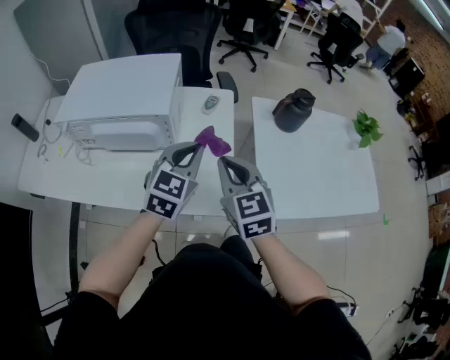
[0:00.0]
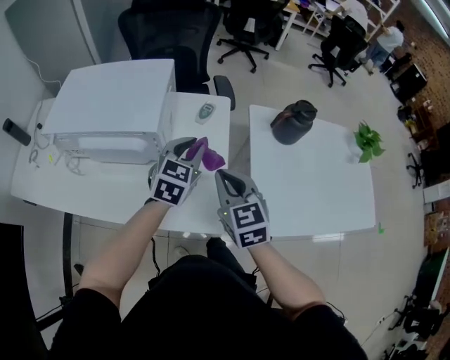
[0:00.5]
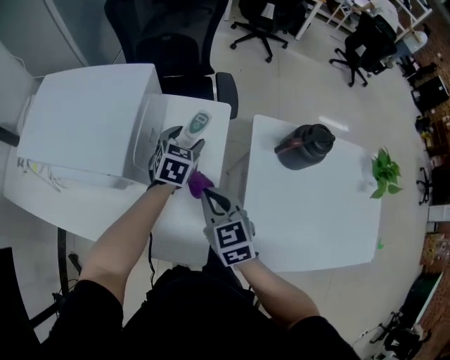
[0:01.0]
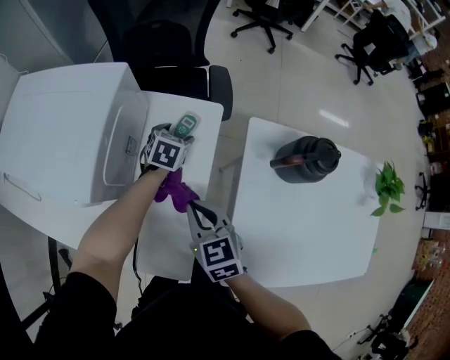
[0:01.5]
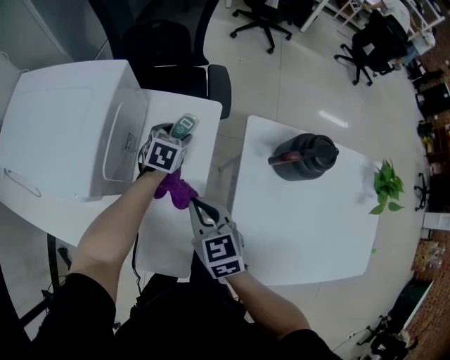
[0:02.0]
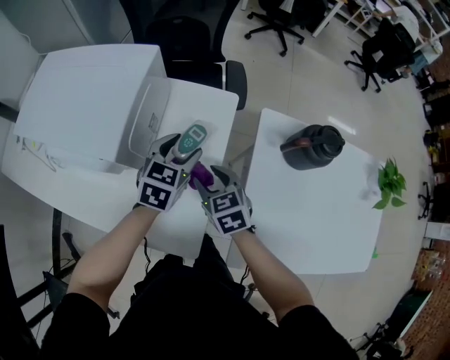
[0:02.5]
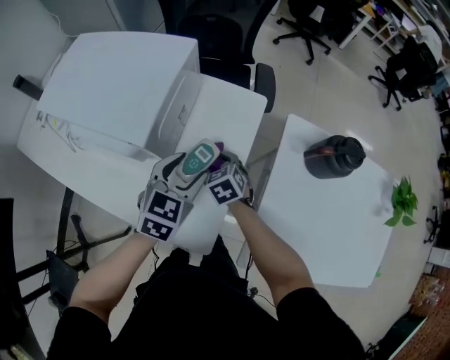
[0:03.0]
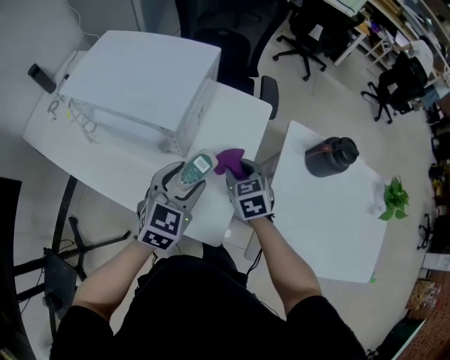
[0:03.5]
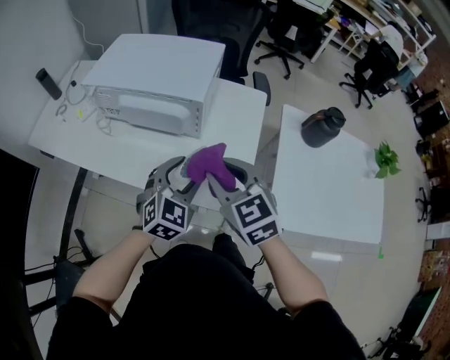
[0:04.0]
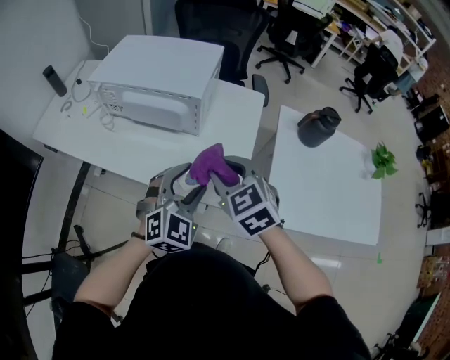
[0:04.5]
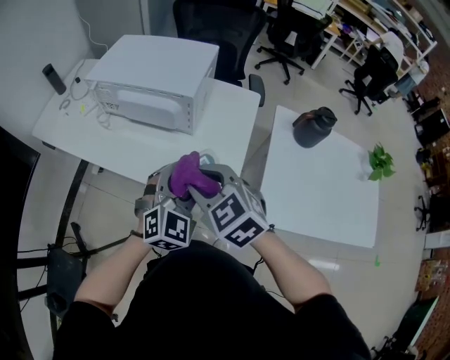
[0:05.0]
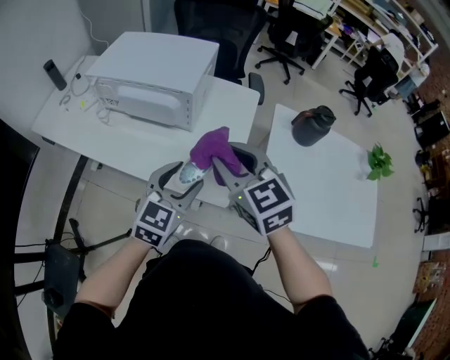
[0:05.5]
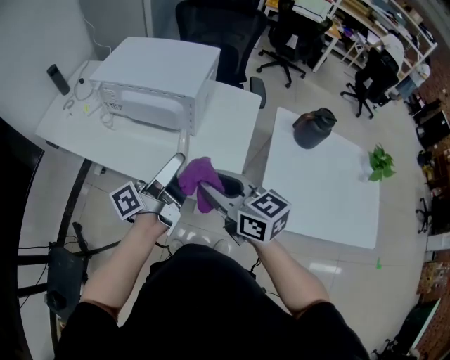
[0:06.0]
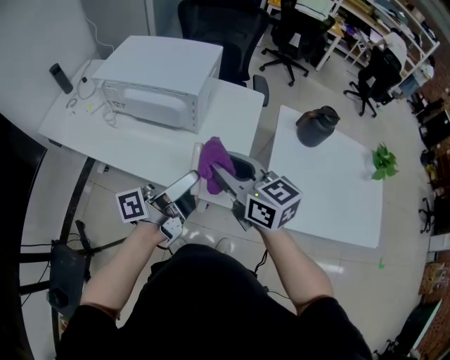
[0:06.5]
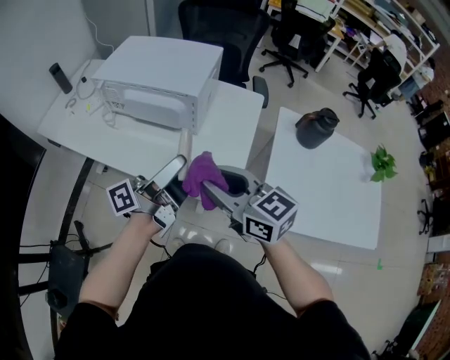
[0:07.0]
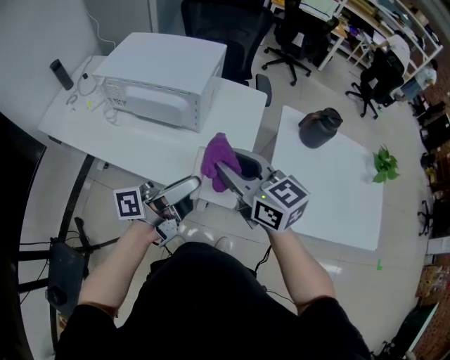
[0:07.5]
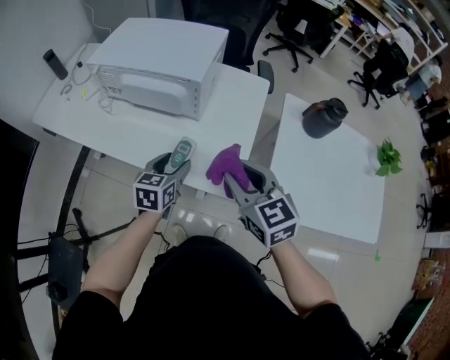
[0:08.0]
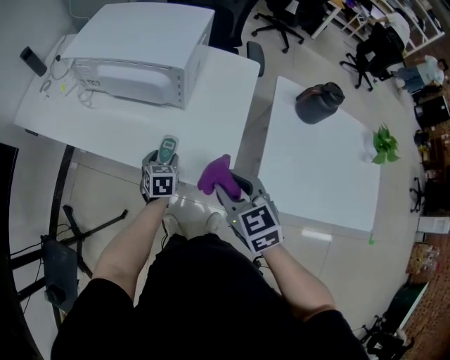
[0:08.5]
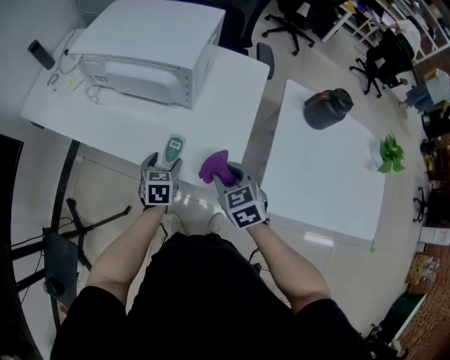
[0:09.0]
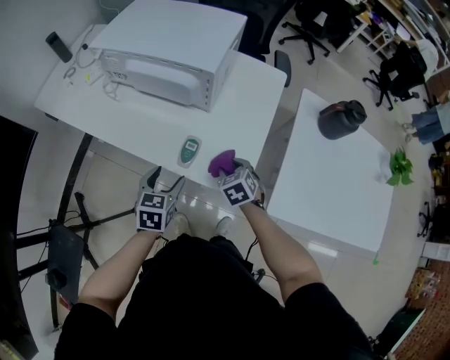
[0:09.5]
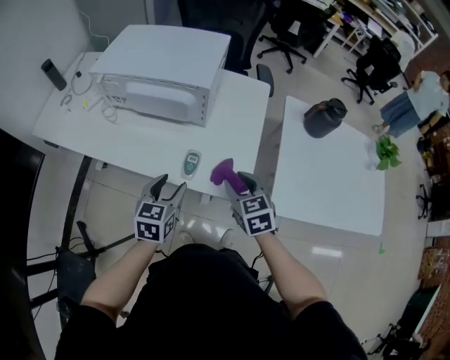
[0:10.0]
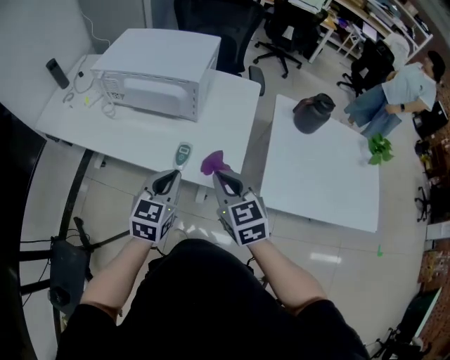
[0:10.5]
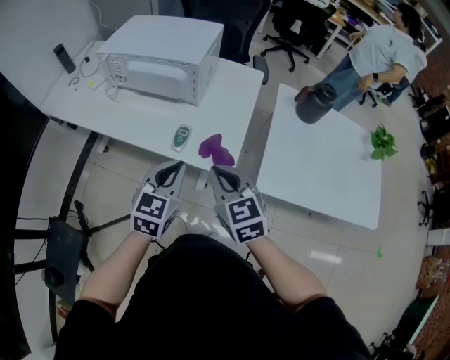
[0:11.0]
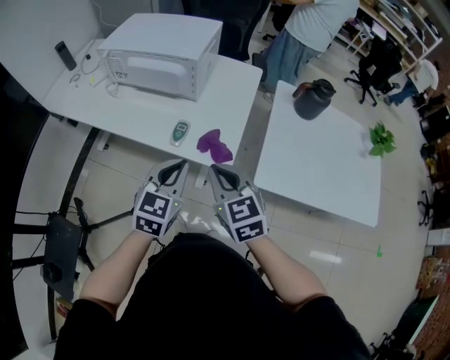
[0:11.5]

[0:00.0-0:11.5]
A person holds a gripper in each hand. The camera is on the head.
0:00.0 to 0:02.0: The right gripper travels downward, forward and to the right by about 25 cm, and swivels roughly 20 degrees. Meanwhile the left gripper is displaced forward and downward by some 40 cm, turns by about 40 degrees, and opens its fingers.
0:02.0 to 0:04.0: The left gripper goes approximately 50 cm backward, to the left and upward, and changes its angle by about 30 degrees, while the right gripper heads to the left, backward and upward, covering roughly 30 cm, turns by approximately 20 degrees, and opens.
0:04.0 to 0:06.0: The left gripper is displaced upward by some 10 cm, and twists about 90 degrees counterclockwise, seen from behind; the right gripper is displaced backward by some 5 cm, and rotates some 30 degrees.
0:06.0 to 0:07.5: The left gripper is displaced backward by approximately 5 cm, and rotates some 20 degrees. The right gripper shifts by about 5 cm.
0:07.5 to 0:09.5: The right gripper shifts approximately 35 cm downward, and angles its fingers downward, by approximately 50 degrees. Meanwhile the left gripper heads downward and to the left, covering approximately 25 cm, and tilts its fingers roughly 60 degrees downward.
0:09.5 to 0:11.5: The left gripper goes approximately 20 cm upward, backward and to the right, turns by about 30 degrees, and closes up; the right gripper shifts approximately 30 cm upward and backward, points its fingers about 30 degrees further upward, and closes.

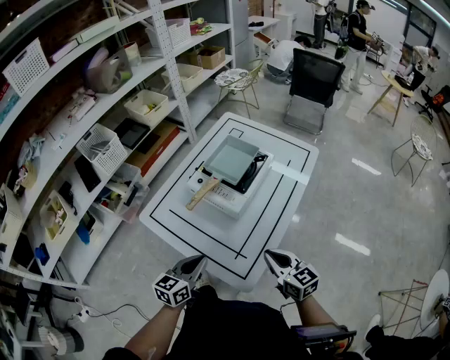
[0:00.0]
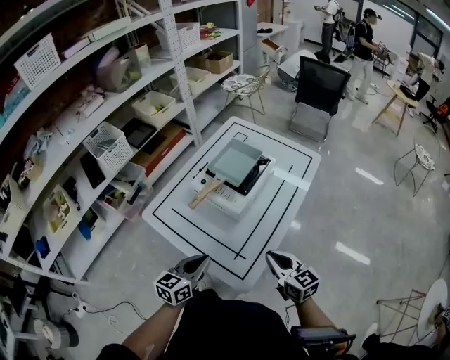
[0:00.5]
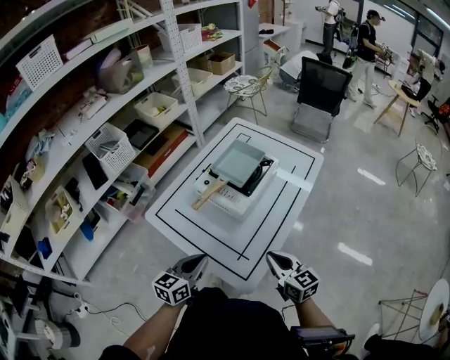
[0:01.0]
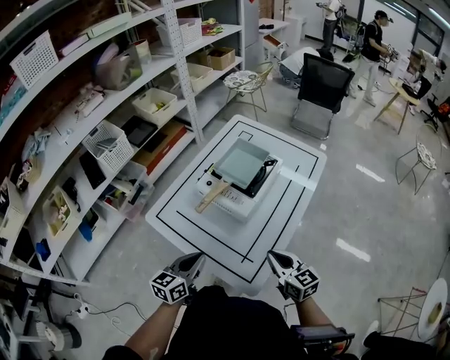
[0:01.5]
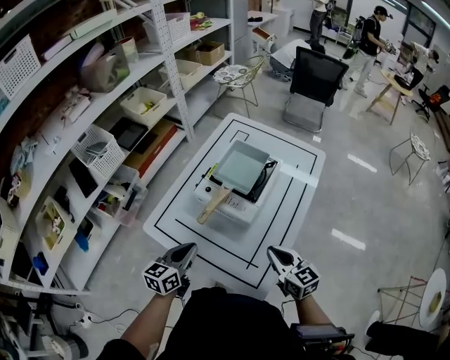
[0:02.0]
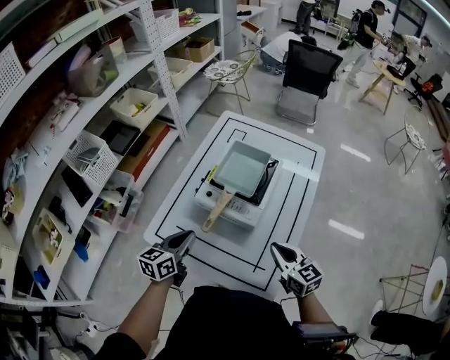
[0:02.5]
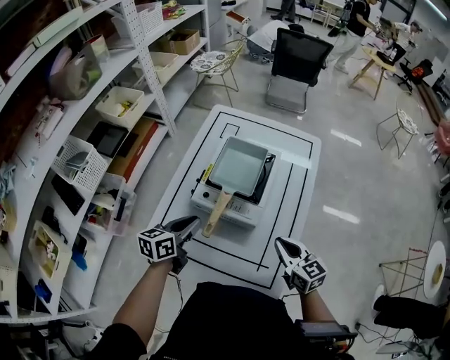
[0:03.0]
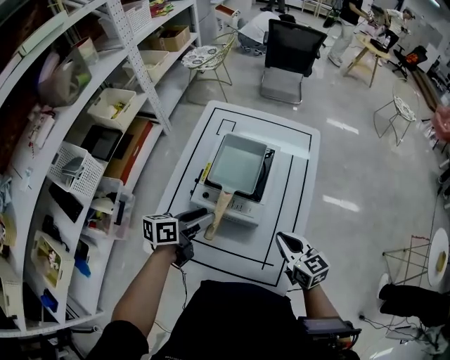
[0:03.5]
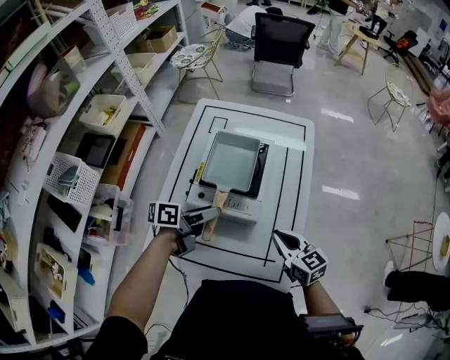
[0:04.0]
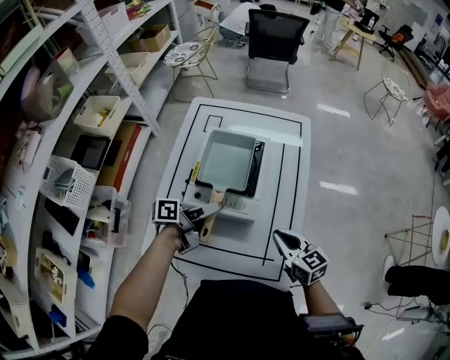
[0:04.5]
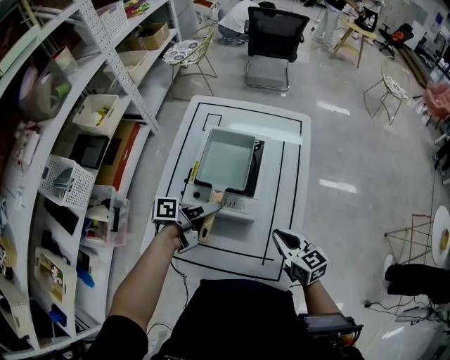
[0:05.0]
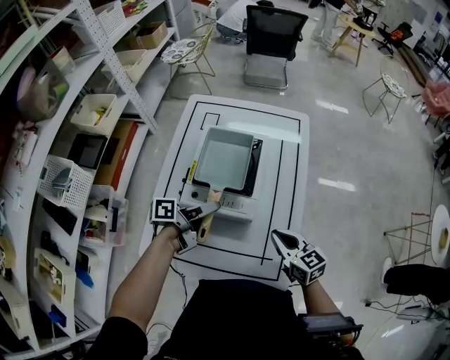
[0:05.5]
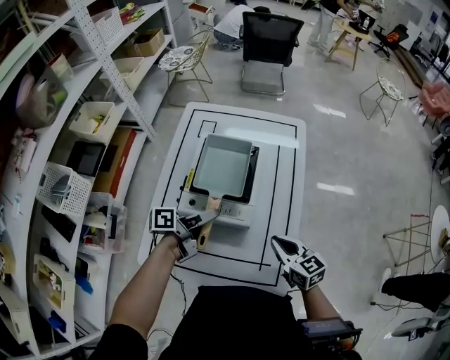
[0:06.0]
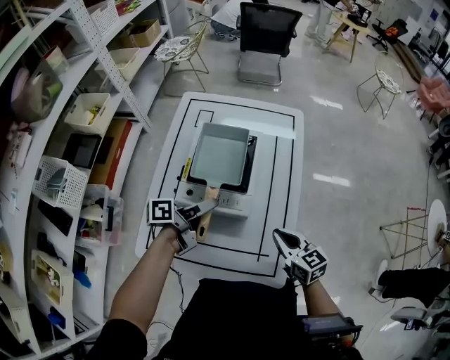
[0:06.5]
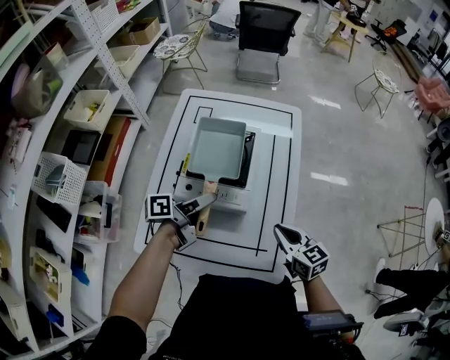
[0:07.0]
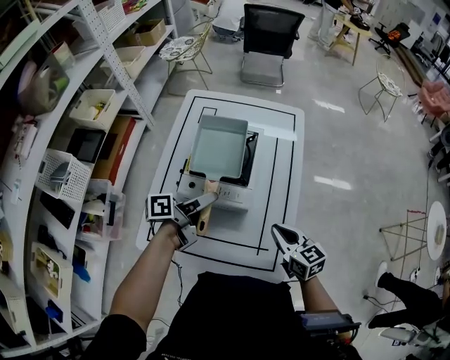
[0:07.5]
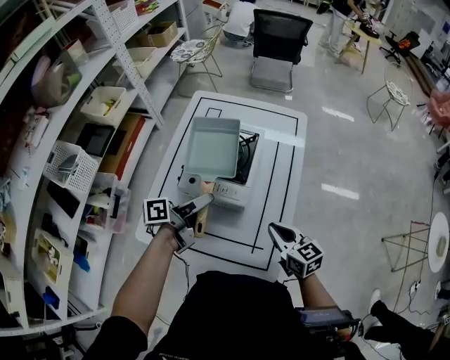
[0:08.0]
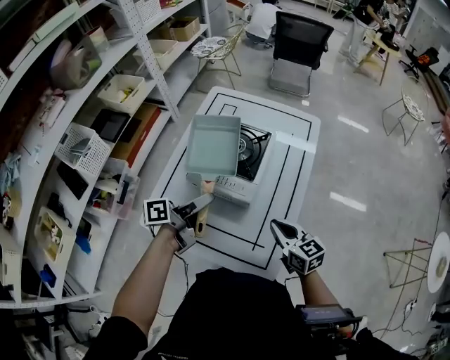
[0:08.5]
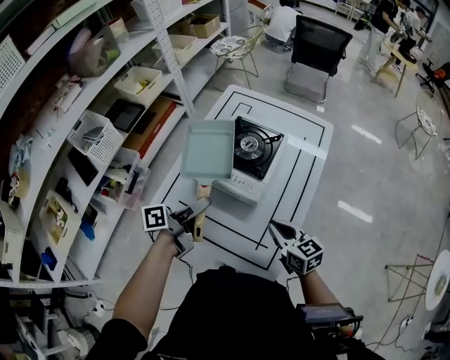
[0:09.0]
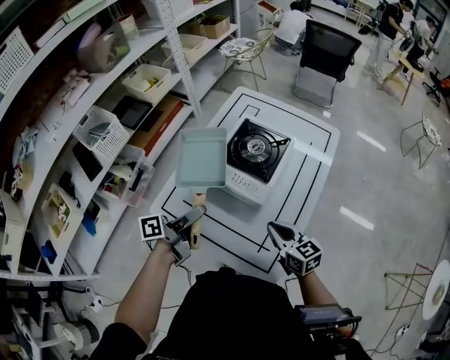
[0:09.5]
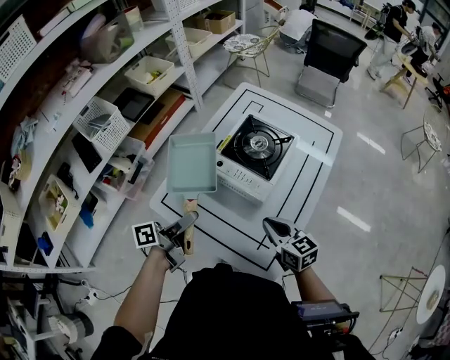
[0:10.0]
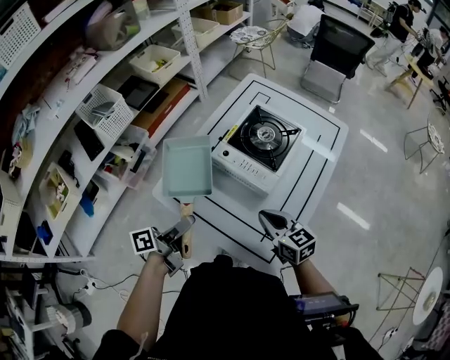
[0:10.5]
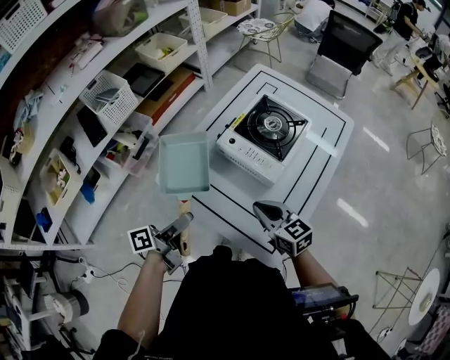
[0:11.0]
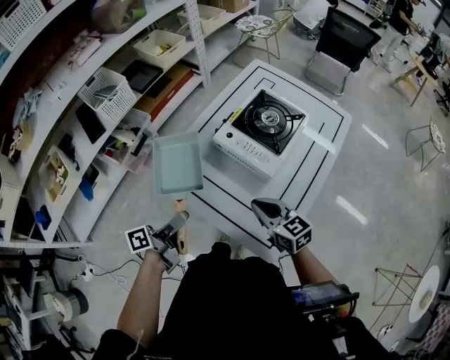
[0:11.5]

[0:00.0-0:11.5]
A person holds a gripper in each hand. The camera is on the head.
0:00.0 to 0:02.0: The right gripper is displaced forward by approximately 5 cm. The left gripper is displaced forward and to the left by about 10 cm.
0:02.0 to 0:04.0: The left gripper changes place by roughly 20 cm, swivels approximately 50 degrees, and opens up. Meanwhile the right gripper shifts by about 5 cm.
0:04.0 to 0:06.0: The left gripper closes its fingers.
0:06.0 to 0:07.5: The grippers stay close to where they were, moving slightly.
0:07.5 to 0:09.5: The left gripper heads backward and to the left, covering roughly 10 cm, and changes its angle by approximately 30 degrees. The right gripper changes its angle by roughly 20 degrees.
0:09.5 to 0:11.5: The left gripper heads backward and to the left, covering roughly 15 cm; the right gripper travels to the left by about 10 cm.

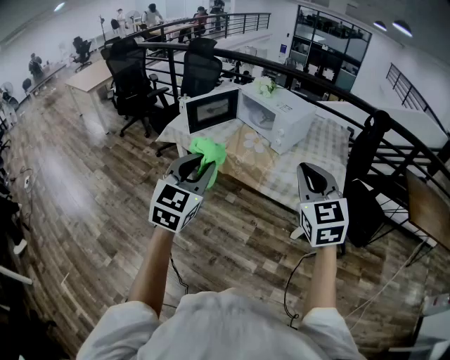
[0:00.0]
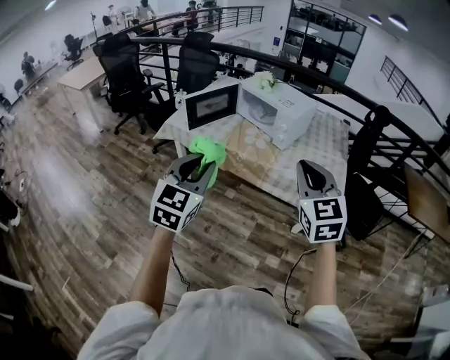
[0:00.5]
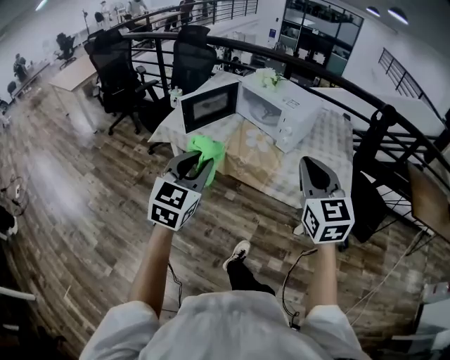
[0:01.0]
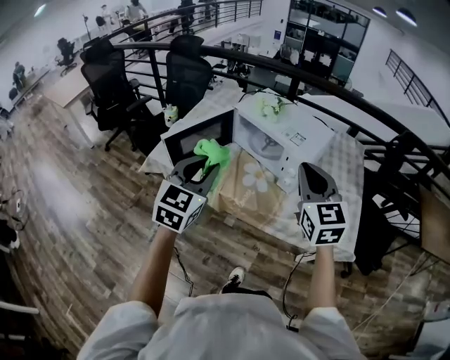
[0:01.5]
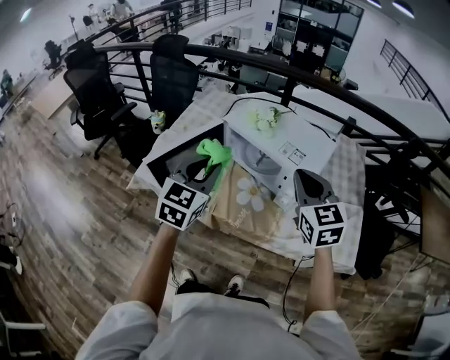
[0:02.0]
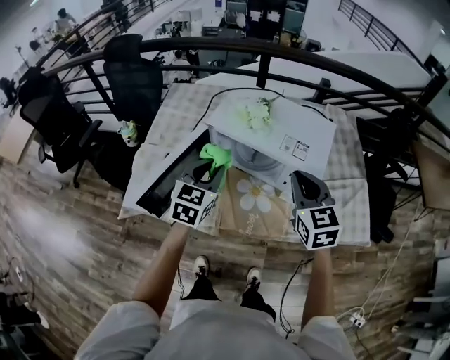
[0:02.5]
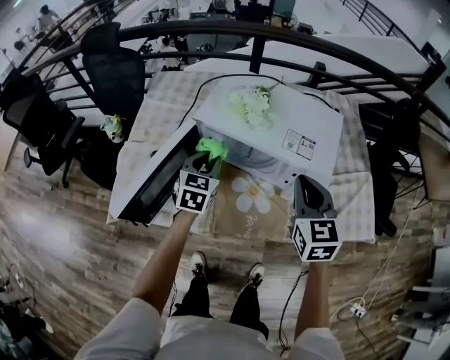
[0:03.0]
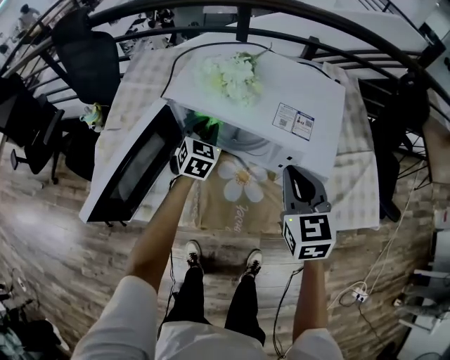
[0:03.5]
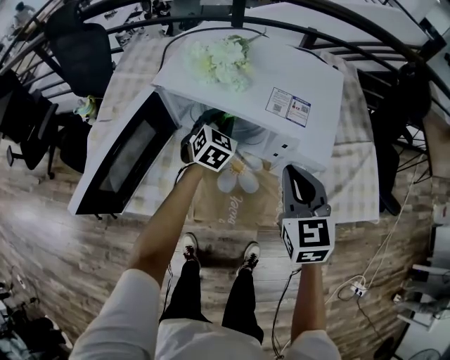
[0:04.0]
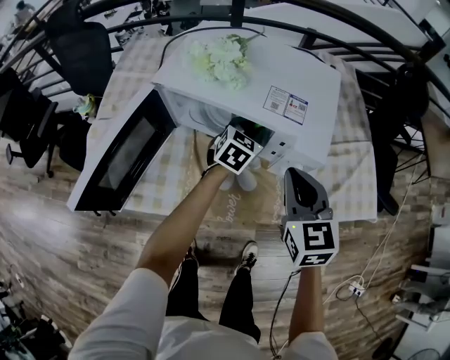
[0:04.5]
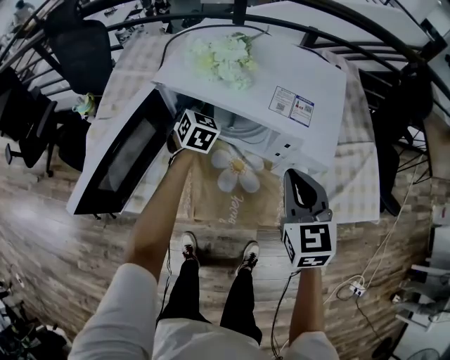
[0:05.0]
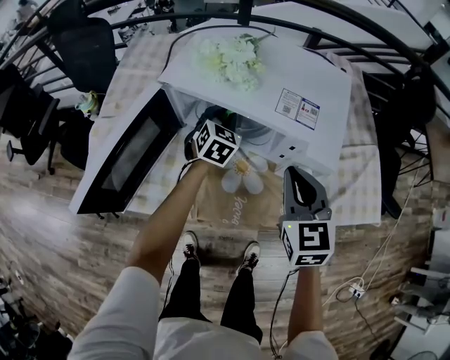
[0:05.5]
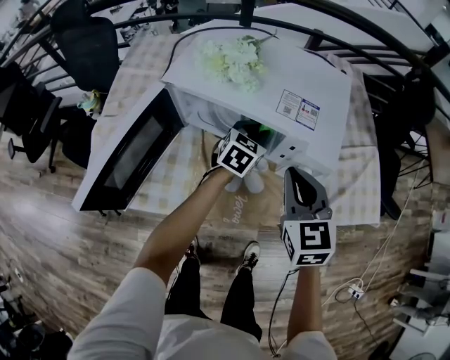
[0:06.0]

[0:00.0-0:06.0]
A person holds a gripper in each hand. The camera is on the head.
0:00.0 to 0:02.0: Both grippers are carried forward, about 50 cm.
0:02.0 to 0:04.0: The right gripper heads downward, covering roughly 20 cm, and rotates approximately 20 degrees, while the left gripper shifts approximately 40 cm downward and forward, and changes its angle by roughly 30 degrees.
0:04.0 to 0:06.0: The left gripper moves left and right over about 15 cm, changing direction 2 times, and rotates roughly 20 degrees.
